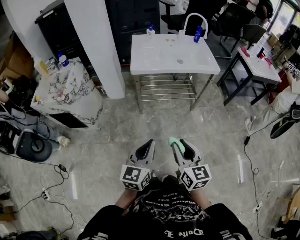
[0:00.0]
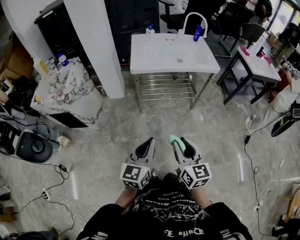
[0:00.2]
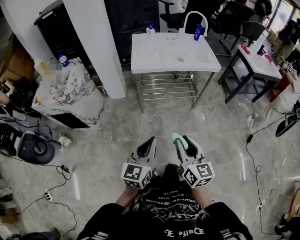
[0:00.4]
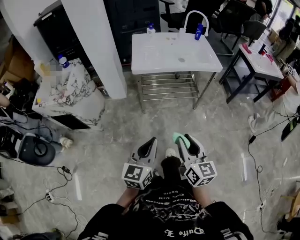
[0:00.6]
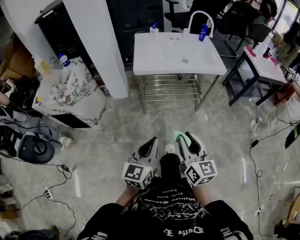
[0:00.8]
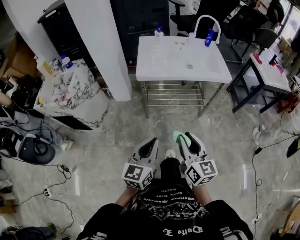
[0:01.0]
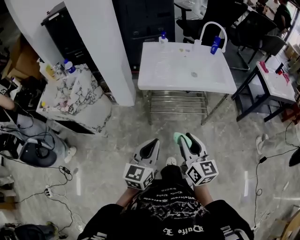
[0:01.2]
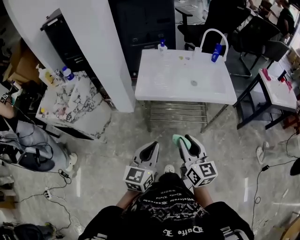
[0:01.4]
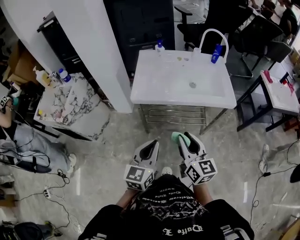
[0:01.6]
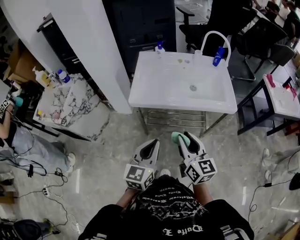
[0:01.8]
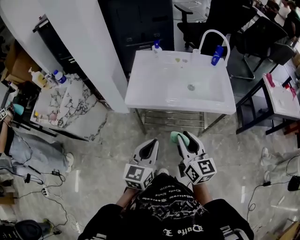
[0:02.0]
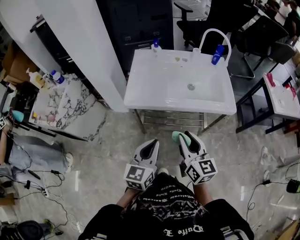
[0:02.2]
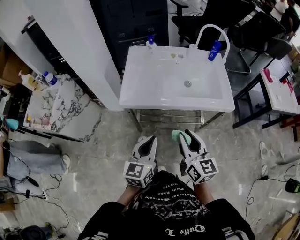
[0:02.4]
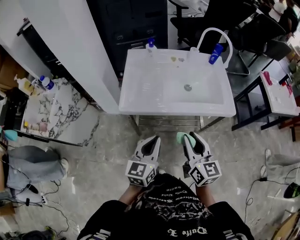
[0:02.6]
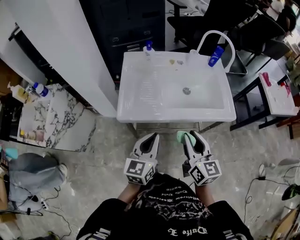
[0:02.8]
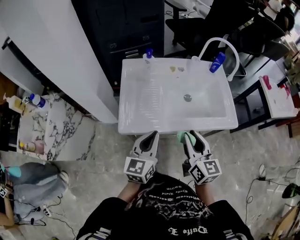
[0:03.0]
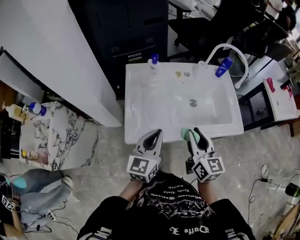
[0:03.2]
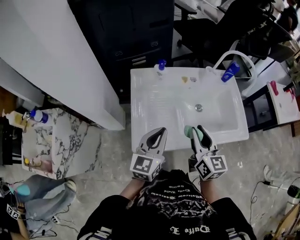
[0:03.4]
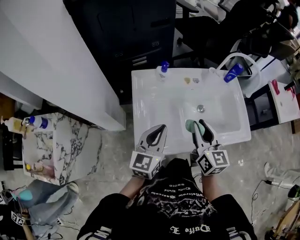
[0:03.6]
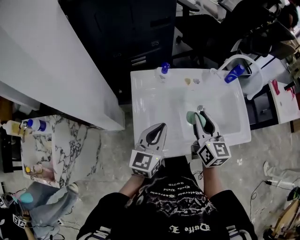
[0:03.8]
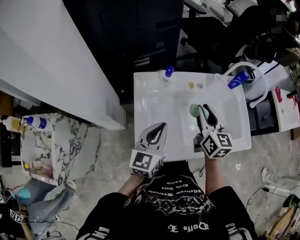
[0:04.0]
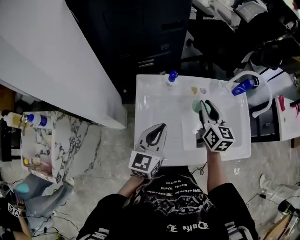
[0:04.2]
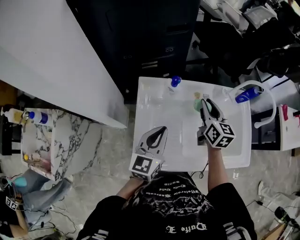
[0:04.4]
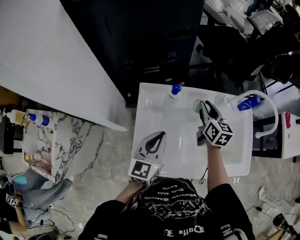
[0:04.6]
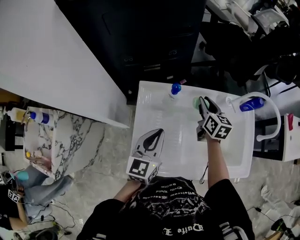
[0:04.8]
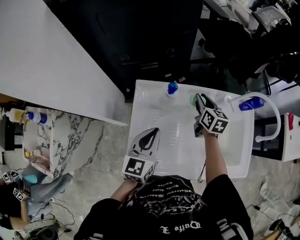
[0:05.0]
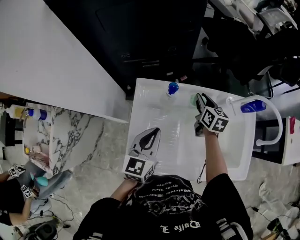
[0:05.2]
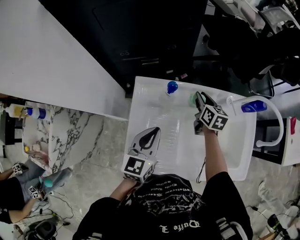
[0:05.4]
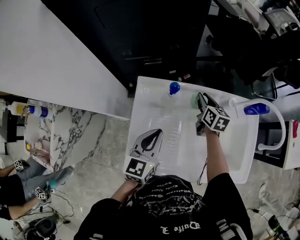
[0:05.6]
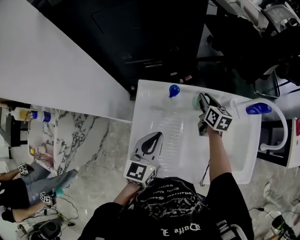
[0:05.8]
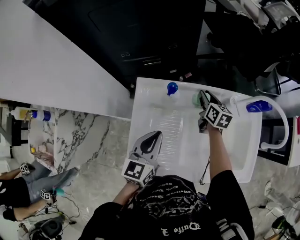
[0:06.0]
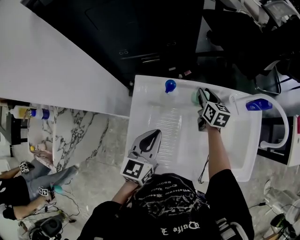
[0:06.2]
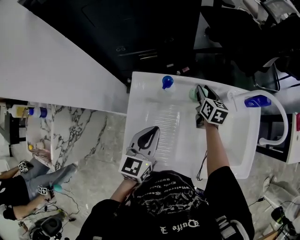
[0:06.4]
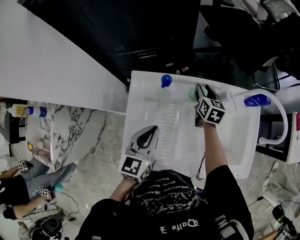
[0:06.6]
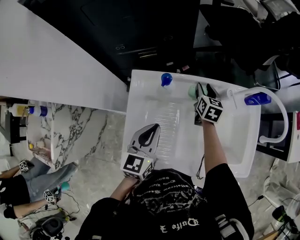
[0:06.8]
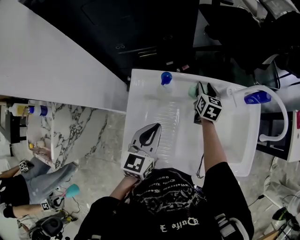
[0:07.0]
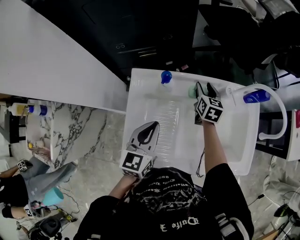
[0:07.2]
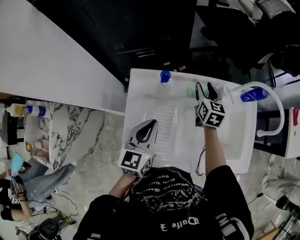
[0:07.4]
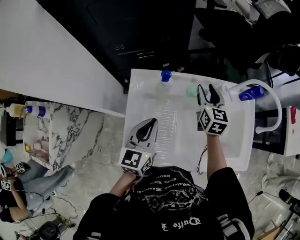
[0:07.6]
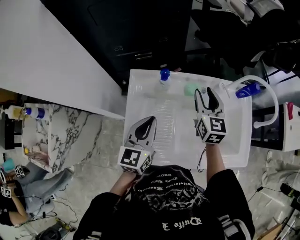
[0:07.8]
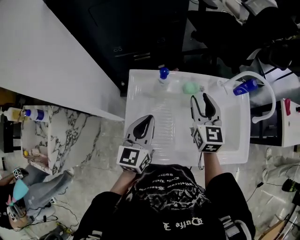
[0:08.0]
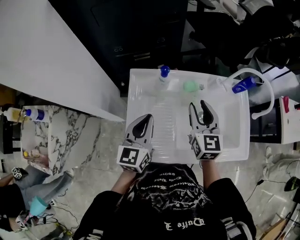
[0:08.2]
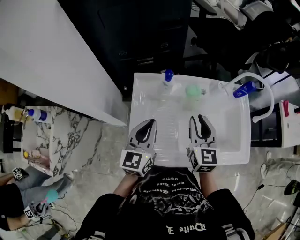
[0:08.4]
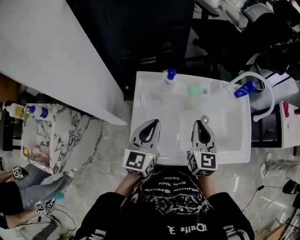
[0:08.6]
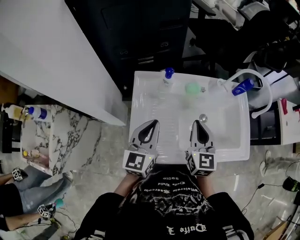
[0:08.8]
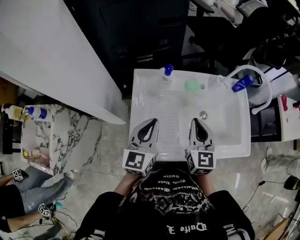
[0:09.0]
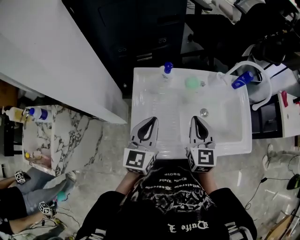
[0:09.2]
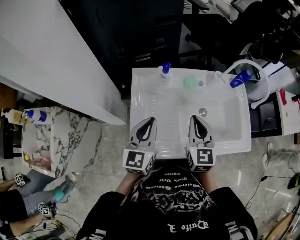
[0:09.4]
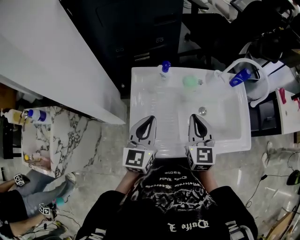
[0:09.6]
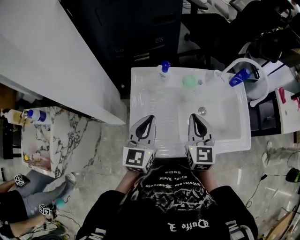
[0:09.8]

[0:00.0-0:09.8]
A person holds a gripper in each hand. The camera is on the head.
0:00.0 to 0:01.4: Both grippers travel together forward, approximately 25 cm.
0:01.4 to 0:02.8: The grippers both shift forward by approximately 20 cm.
0:02.8 to 0:04.2: The left gripper travels forward and to the left by roughly 30 cm. The right gripper goes approximately 35 cm forward.
0:04.2 to 0:05.6: The left gripper travels forward by roughly 5 cm. Meanwhile the right gripper moves forward and downward, roughly 20 cm, and rotates some 20 degrees.
0:05.6 to 0:07.0: The grippers move only a little.
0:07.0 to 0:08.4: The left gripper shifts by about 10 cm. The right gripper moves backward and upward, about 30 cm, and turns by about 20 degrees.
0:08.4 to 0:09.8: The right gripper closes.

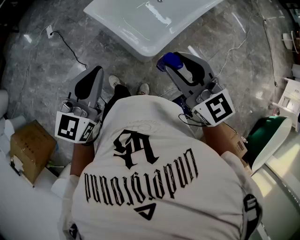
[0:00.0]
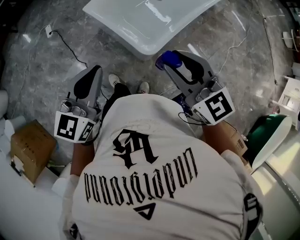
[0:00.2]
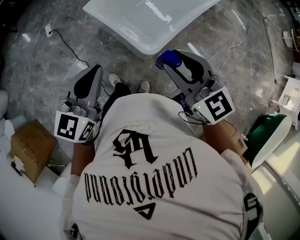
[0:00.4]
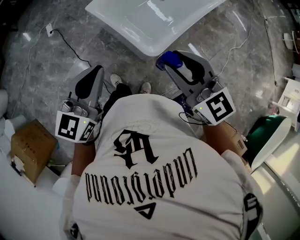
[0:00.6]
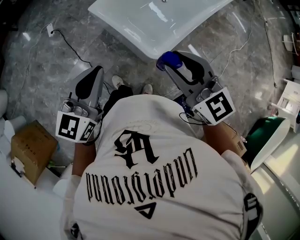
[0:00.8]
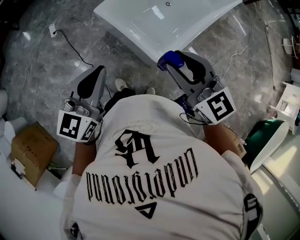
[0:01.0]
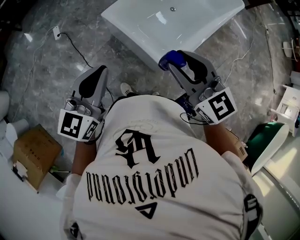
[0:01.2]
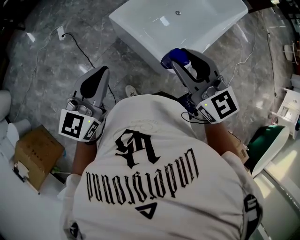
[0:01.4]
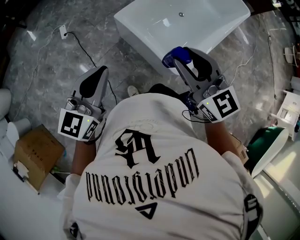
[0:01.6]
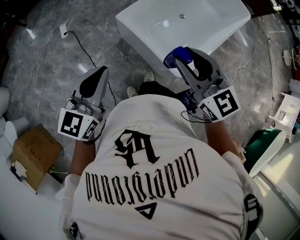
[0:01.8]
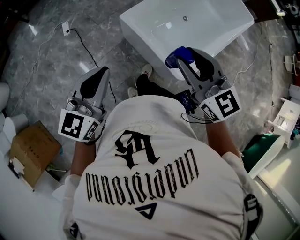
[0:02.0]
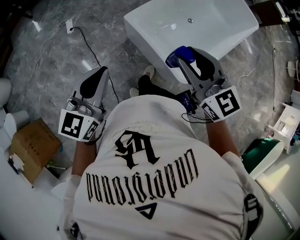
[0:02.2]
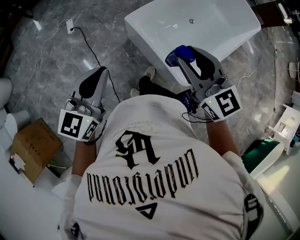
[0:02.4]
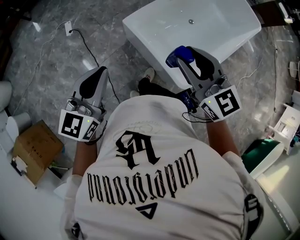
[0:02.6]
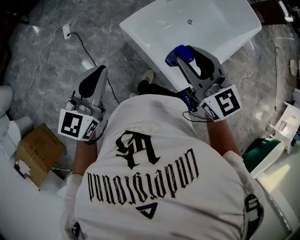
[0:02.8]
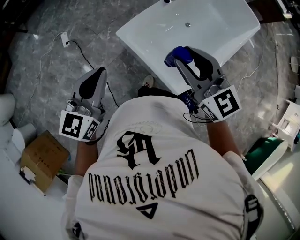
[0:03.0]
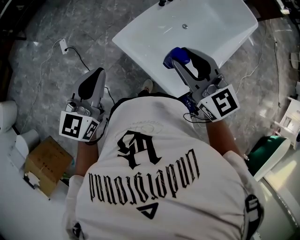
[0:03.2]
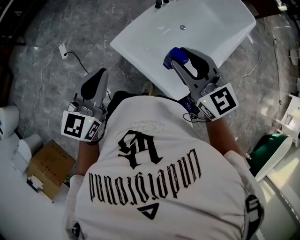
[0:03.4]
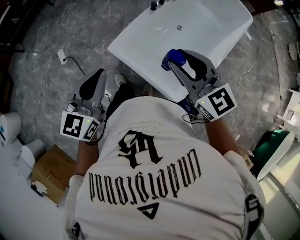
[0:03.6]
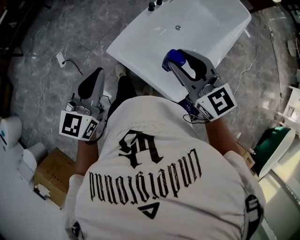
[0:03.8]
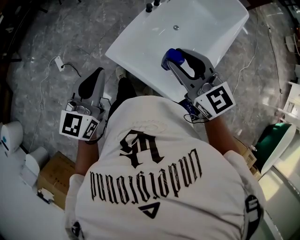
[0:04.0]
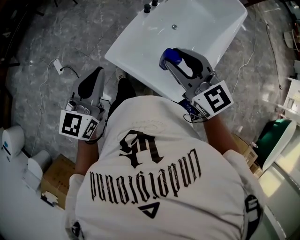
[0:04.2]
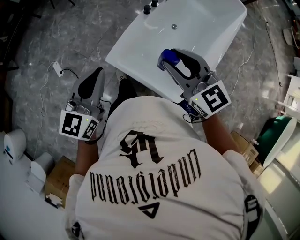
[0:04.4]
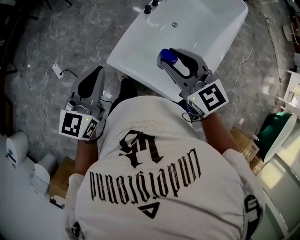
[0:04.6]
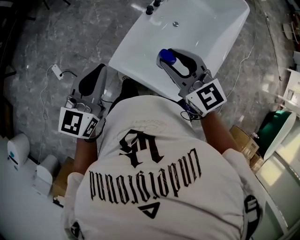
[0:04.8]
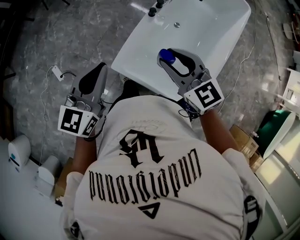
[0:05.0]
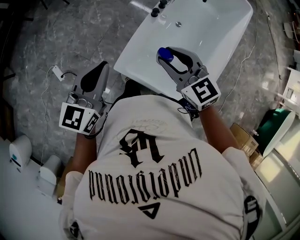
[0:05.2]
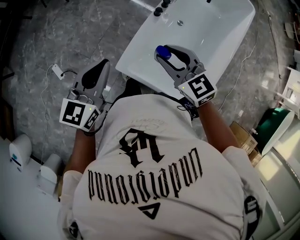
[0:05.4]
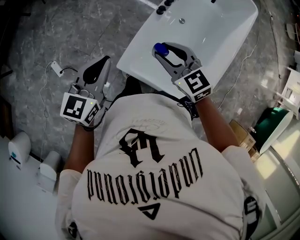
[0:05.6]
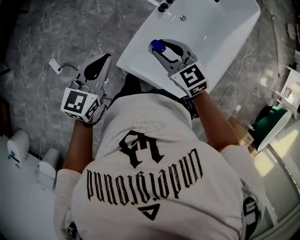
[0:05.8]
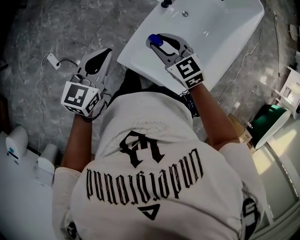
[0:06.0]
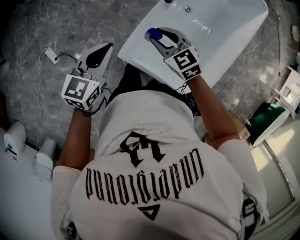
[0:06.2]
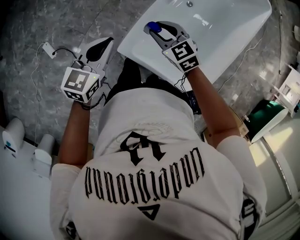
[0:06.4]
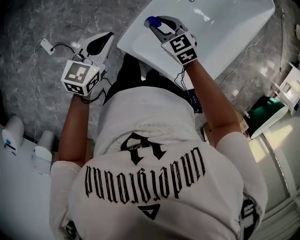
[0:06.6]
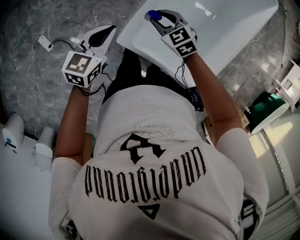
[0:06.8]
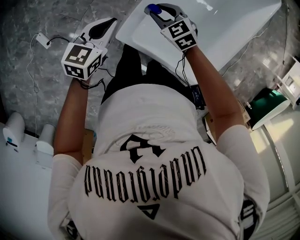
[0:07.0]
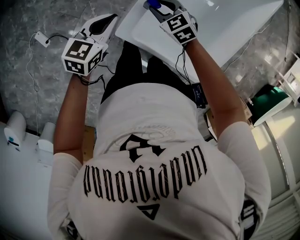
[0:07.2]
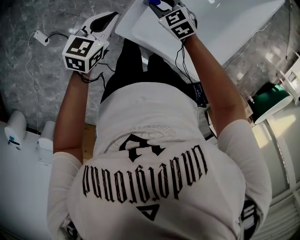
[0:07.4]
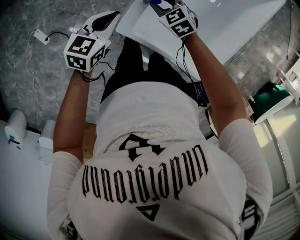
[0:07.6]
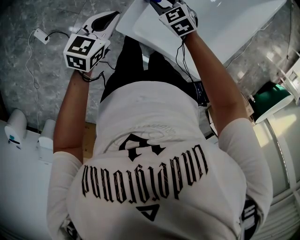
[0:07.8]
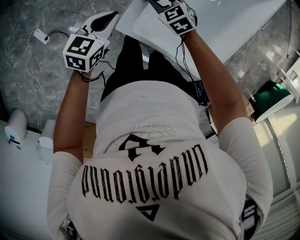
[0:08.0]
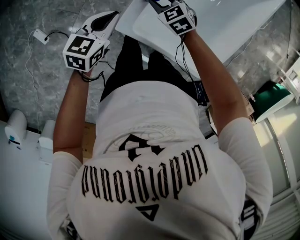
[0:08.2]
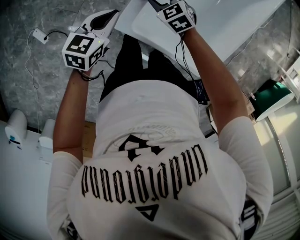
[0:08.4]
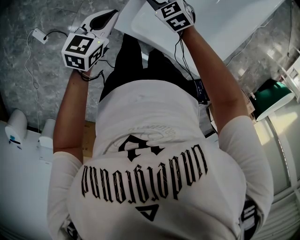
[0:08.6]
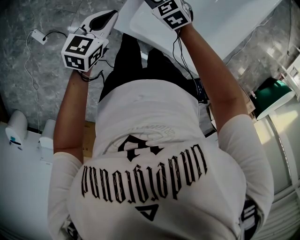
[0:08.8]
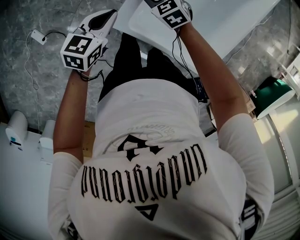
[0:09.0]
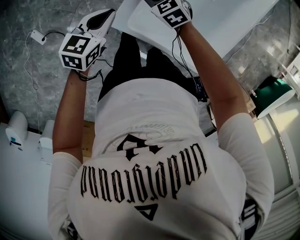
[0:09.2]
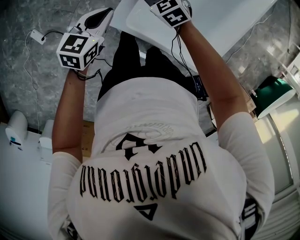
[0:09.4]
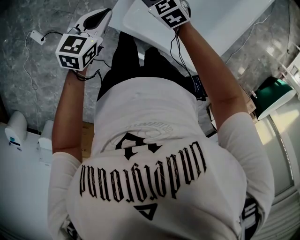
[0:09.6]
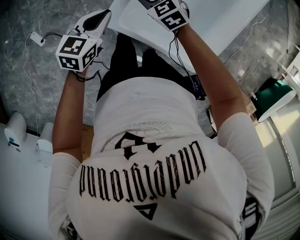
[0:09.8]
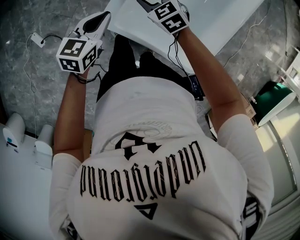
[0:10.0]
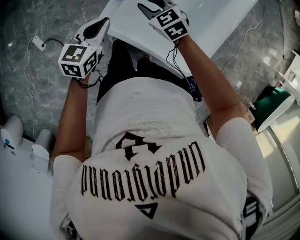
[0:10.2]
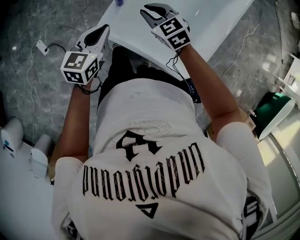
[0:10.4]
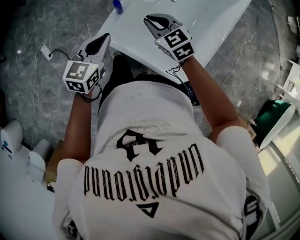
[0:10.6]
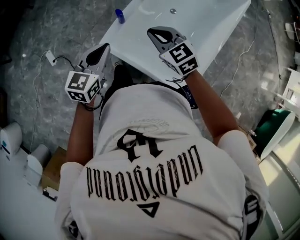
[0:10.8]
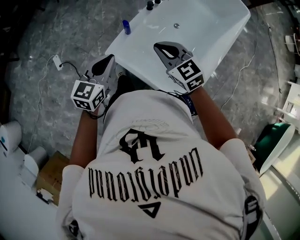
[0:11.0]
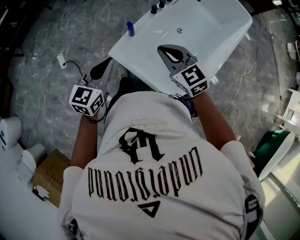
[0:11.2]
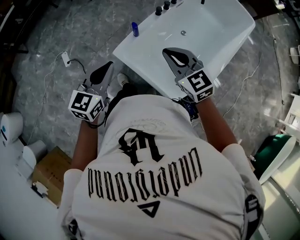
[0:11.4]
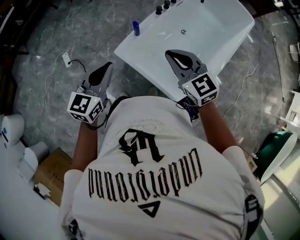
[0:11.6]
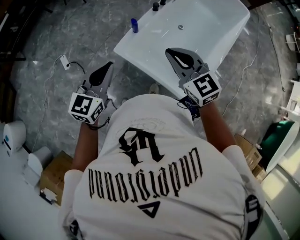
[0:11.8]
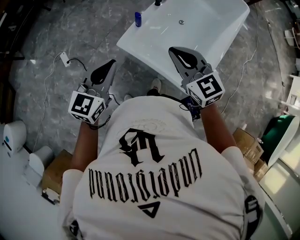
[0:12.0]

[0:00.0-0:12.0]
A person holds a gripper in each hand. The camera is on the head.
0:00.0 to 0:01.6: Both grippers move to the left and forward, some 25 cm.
0:01.6 to 0:03.0: The two grippers go some 20 cm forward.
0:03.0 to 0:04.4: The grippers both shift forward by about 15 cm.
0:04.4 to 0:06.0: The two grippers go some 30 cm forward, downward and to the left. The right gripper rotates about 20 degrees.
0:06.0 to 0:07.6: The grippers both shift downward by roughly 20 cm.
0:07.6 to 0:09.0: The grippers move only a little.
0:09.0 to 0:10.4: The left gripper is displaced backward, upward and to the right by approximately 20 cm, while the right gripper travels upward, backward and to the right by approximately 25 cm.
0:10.4 to 0:12.0: The left gripper goes approximately 30 cm backward and upward, while the right gripper is displaced upward and backward by some 35 cm, and changes its angle by some 20 degrees.

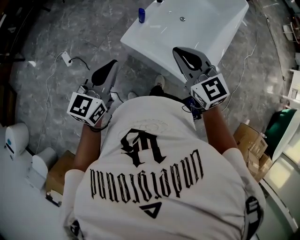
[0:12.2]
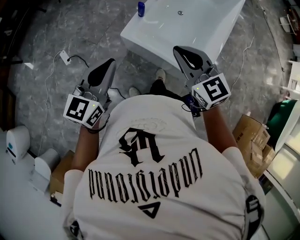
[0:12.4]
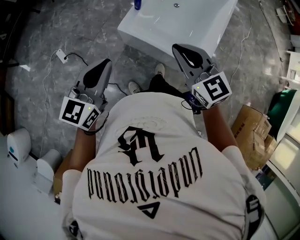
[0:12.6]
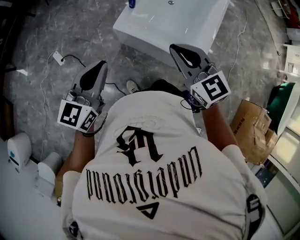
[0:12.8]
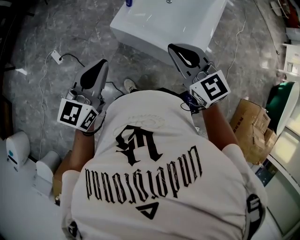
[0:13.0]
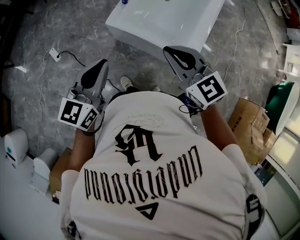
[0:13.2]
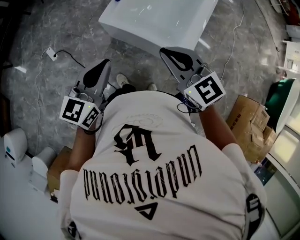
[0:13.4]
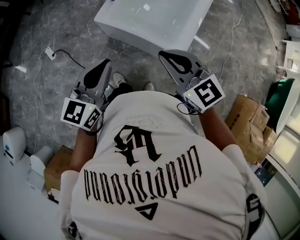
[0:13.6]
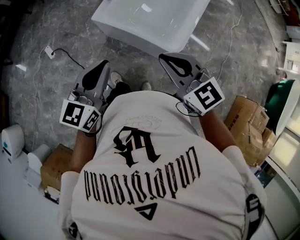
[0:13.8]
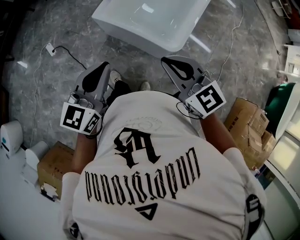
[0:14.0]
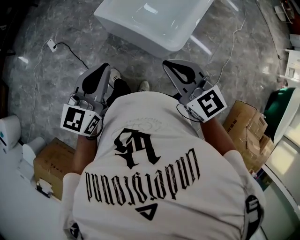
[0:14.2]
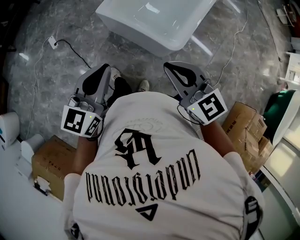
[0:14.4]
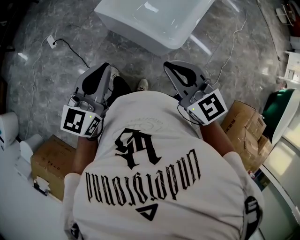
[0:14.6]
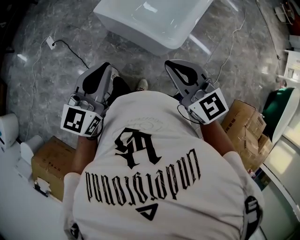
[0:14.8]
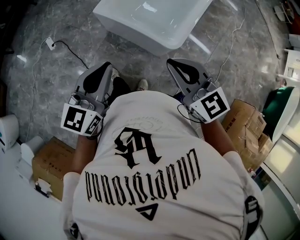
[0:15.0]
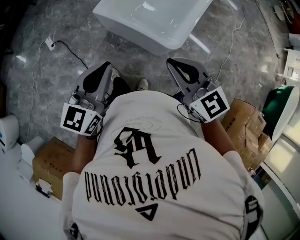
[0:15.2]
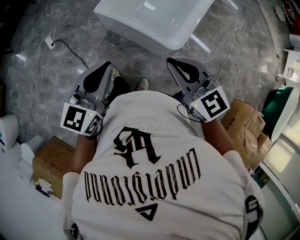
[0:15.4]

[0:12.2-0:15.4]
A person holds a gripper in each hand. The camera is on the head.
0:12.2 to 0:13.8: The two grippers go some 25 cm backward and to the right.
